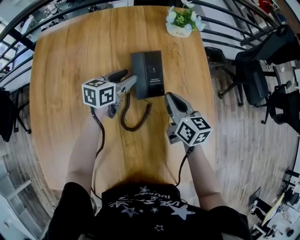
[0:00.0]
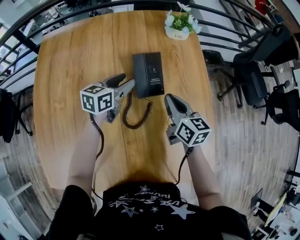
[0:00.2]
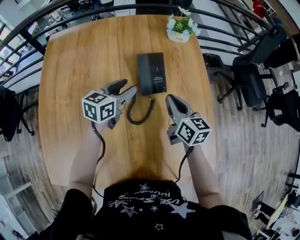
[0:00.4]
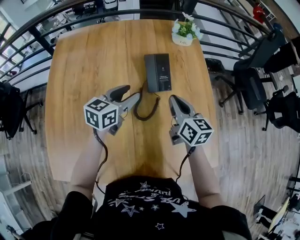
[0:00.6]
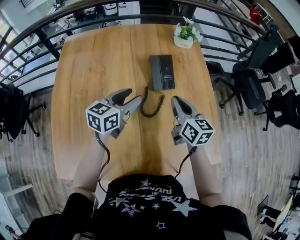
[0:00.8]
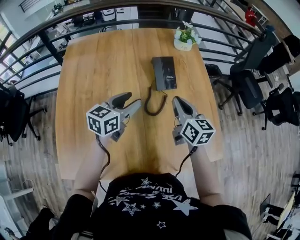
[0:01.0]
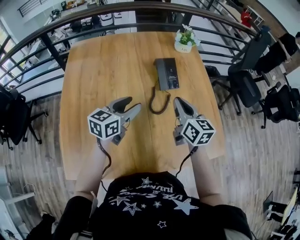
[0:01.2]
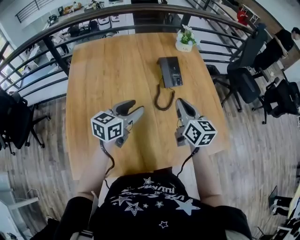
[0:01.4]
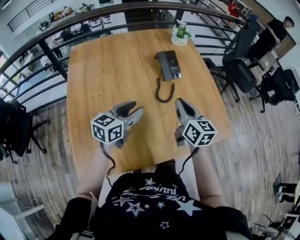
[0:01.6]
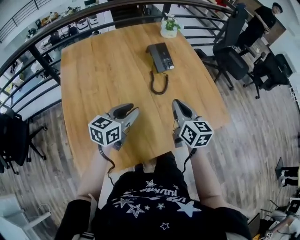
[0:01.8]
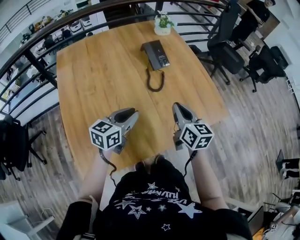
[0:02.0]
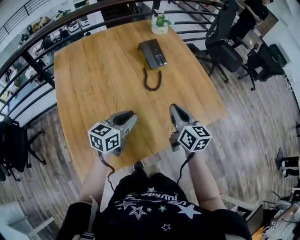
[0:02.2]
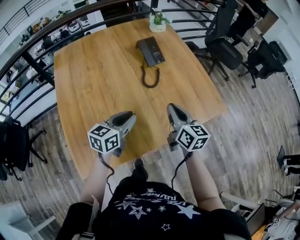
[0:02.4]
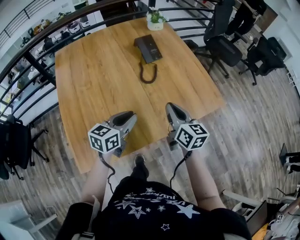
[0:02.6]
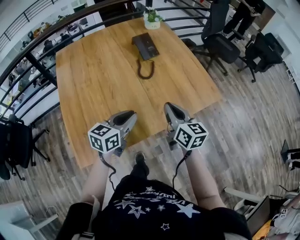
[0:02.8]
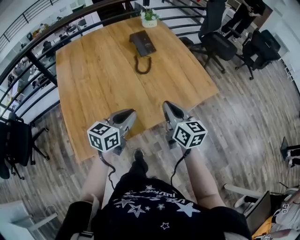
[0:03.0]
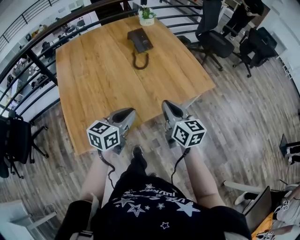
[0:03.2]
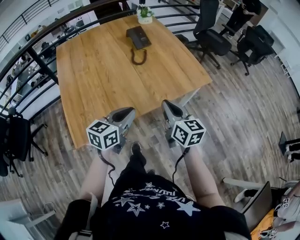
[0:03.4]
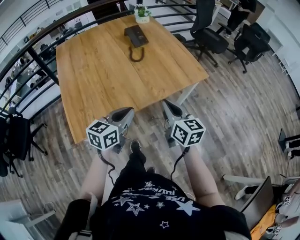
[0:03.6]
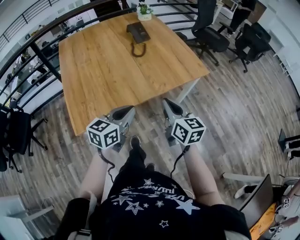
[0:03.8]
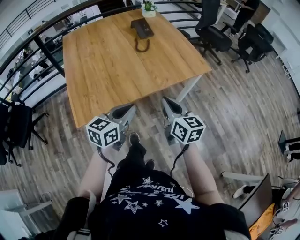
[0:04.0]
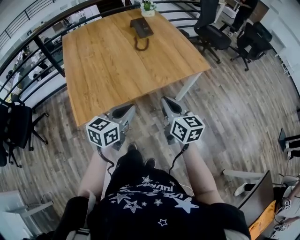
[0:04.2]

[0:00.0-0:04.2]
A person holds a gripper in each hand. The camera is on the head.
0:00.0 to 0:01.4: The right gripper is displaced backward, upward and to the left by about 20 cm; the left gripper is displaced backward and upward by approximately 30 cm.
0:01.4 to 0:02.8: The right gripper travels backward by some 20 cm. Meanwhile the left gripper moves backward and to the right, about 20 cm, and closes up.
0:02.8 to 0:04.2: Both grippers travel together backward, about 20 cm.

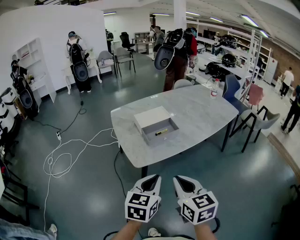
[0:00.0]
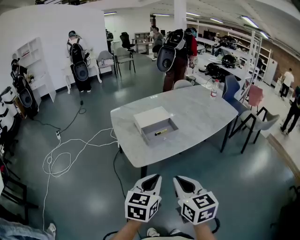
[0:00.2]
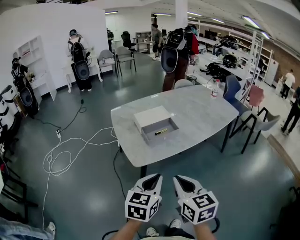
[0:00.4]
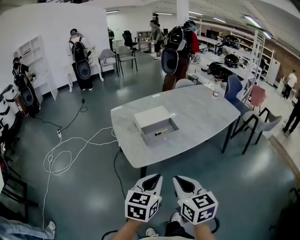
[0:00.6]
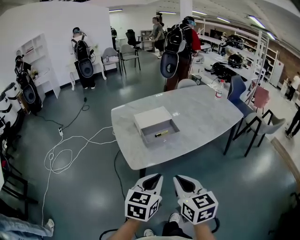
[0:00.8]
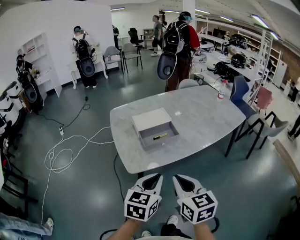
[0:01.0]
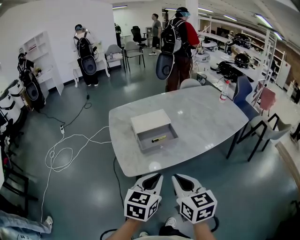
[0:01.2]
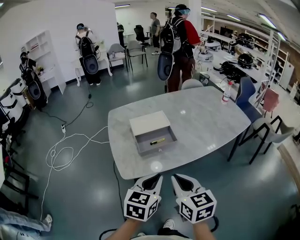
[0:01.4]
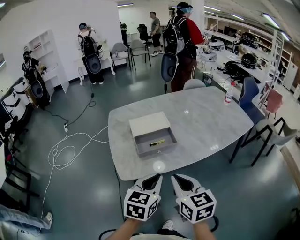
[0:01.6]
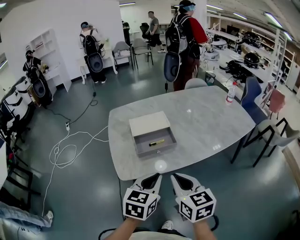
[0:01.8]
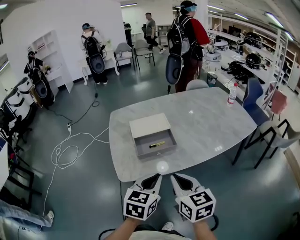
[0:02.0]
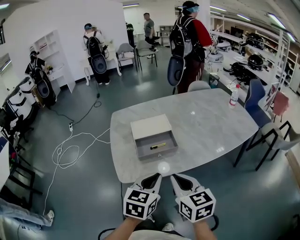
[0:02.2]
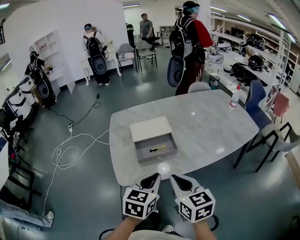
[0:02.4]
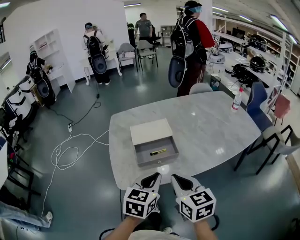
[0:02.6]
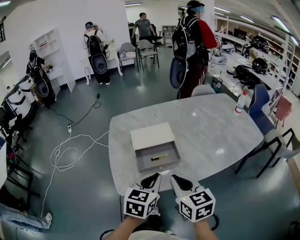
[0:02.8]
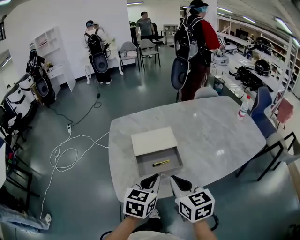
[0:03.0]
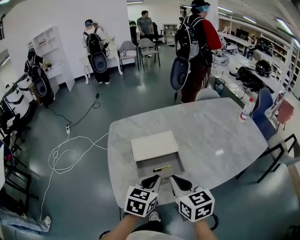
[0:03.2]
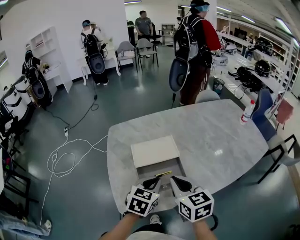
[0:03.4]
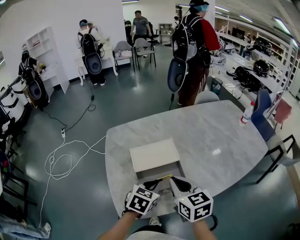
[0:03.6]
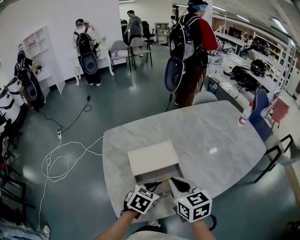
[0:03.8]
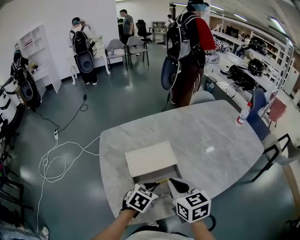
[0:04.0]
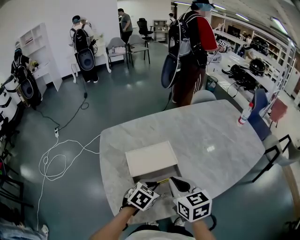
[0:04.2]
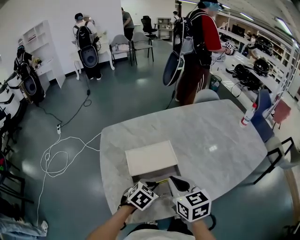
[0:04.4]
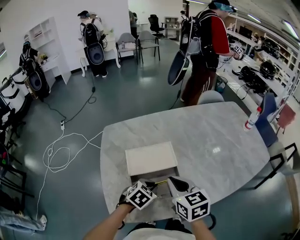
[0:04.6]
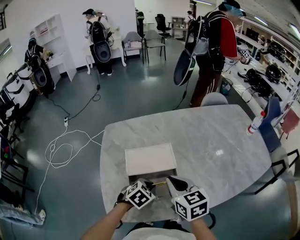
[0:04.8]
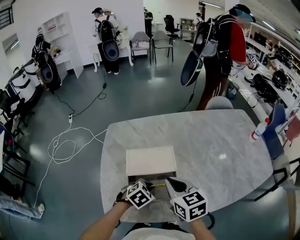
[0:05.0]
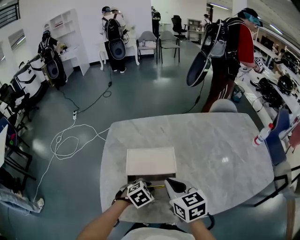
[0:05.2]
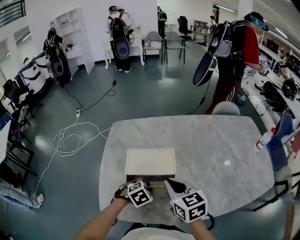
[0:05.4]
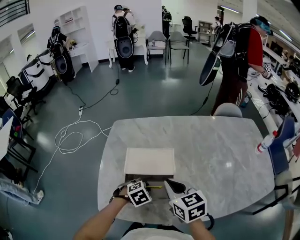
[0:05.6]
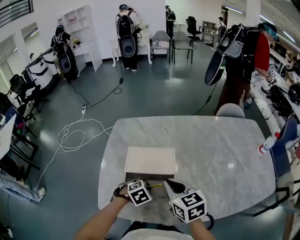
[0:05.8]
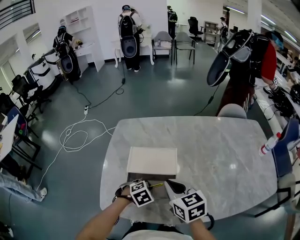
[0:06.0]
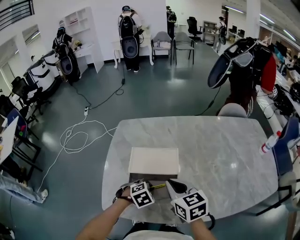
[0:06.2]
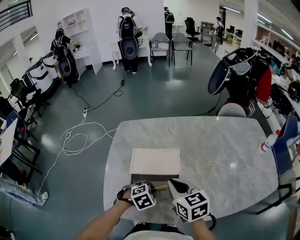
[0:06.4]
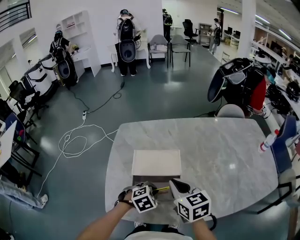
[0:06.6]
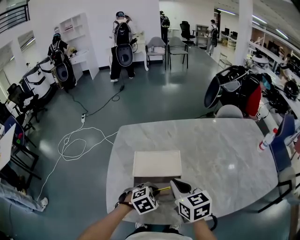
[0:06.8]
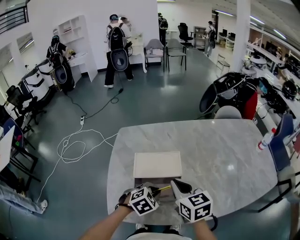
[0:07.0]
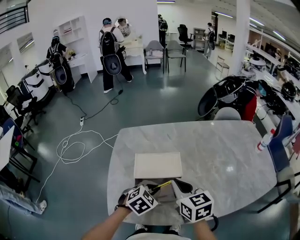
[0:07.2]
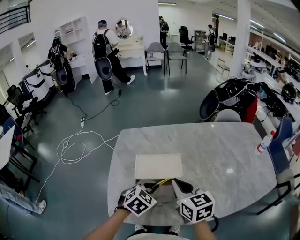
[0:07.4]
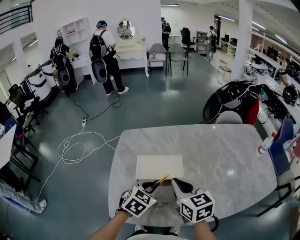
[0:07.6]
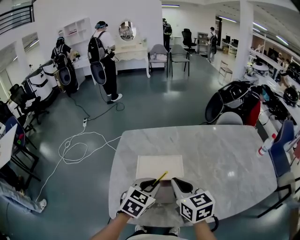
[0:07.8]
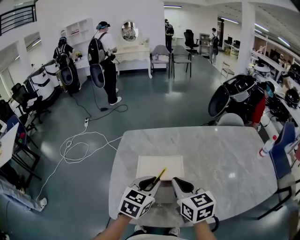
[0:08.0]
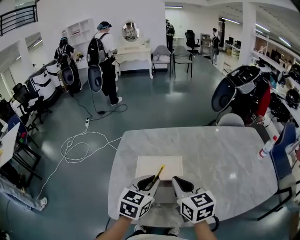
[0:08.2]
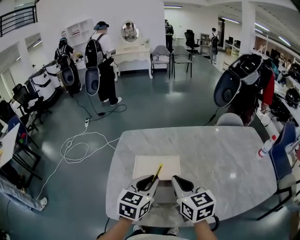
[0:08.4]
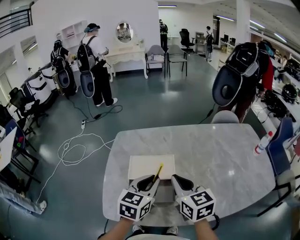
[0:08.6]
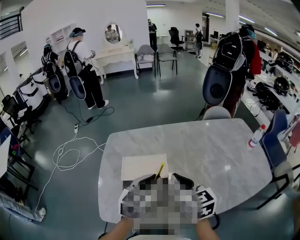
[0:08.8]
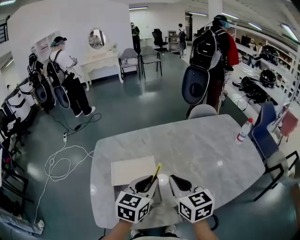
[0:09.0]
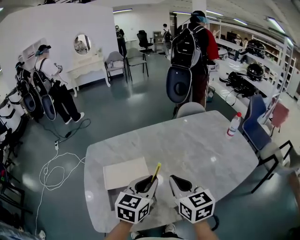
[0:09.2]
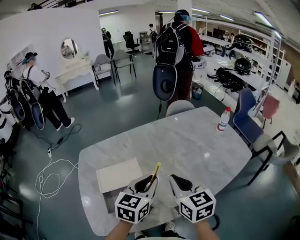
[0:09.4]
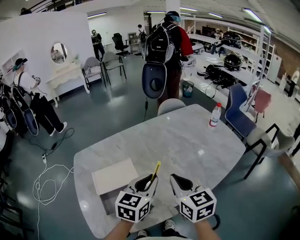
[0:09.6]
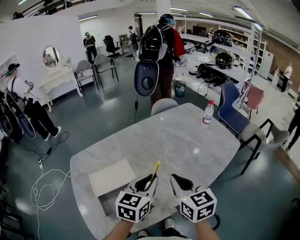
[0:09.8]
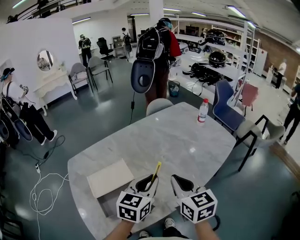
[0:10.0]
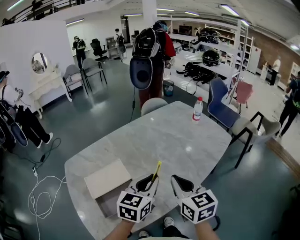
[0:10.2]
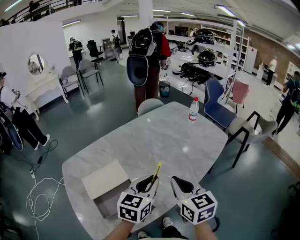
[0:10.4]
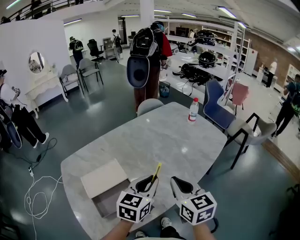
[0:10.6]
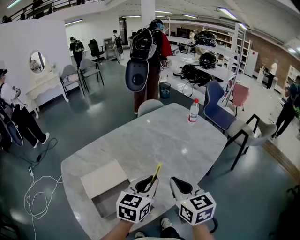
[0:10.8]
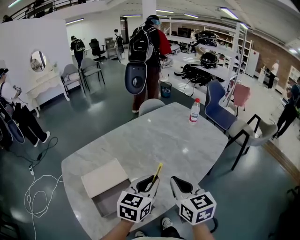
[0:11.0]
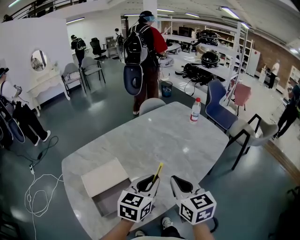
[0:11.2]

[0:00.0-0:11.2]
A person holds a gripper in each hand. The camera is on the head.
0:00.0 to 0:01.6: Both grippers travel together forward and to the right, some 15 cm.
0:01.6 to 0:03.2: Both grippers move forward, approximately 20 cm.
0:03.2 to 0:04.8: The left gripper heads downward and forward, covering roughly 15 cm, and turns by some 30 degrees; the right gripper is displaced forward by approximately 10 cm.
0:04.8 to 0:06.4: There are only small adjustments of the grippers.
0:06.4 to 0:08.0: The right gripper is displaced upward by approximately 5 cm. The left gripper shifts approximately 15 cm upward, and points its fingers roughly 40 degrees further upward.
0:08.0 to 0:09.6: The right gripper changes place by roughly 20 cm, and changes its angle by roughly 30 degrees. Meanwhile the left gripper changes place by approximately 20 cm, and turns by about 20 degrees.
0:09.6 to 0:11.2: The right gripper moves roughly 5 cm; the left gripper travels to the right by approximately 5 cm.

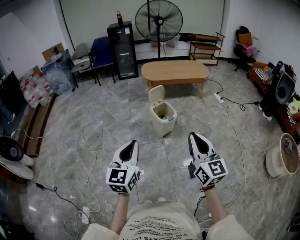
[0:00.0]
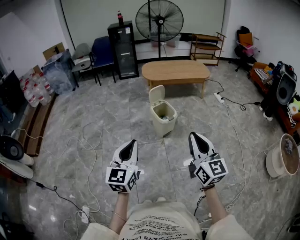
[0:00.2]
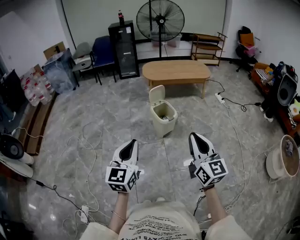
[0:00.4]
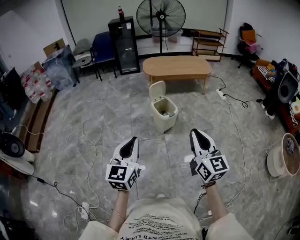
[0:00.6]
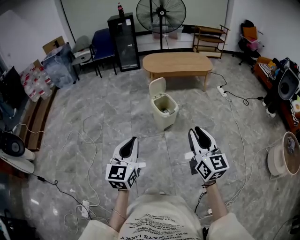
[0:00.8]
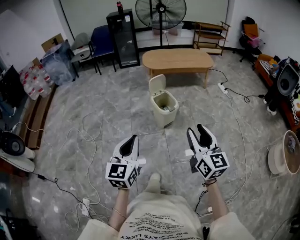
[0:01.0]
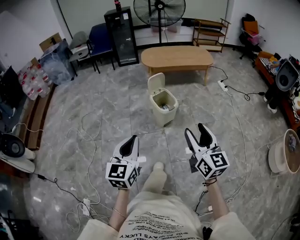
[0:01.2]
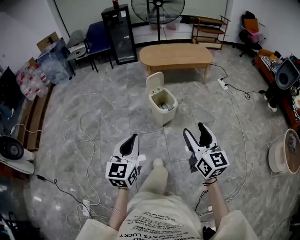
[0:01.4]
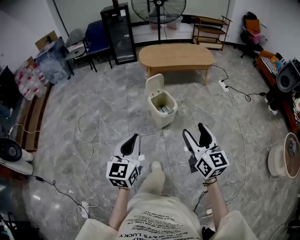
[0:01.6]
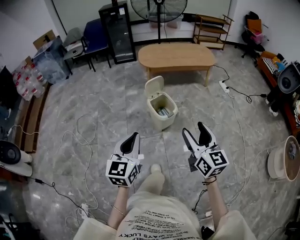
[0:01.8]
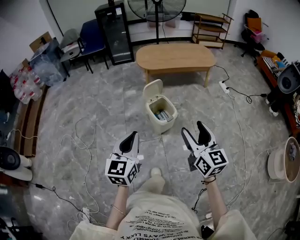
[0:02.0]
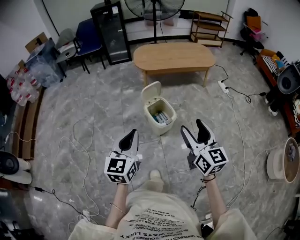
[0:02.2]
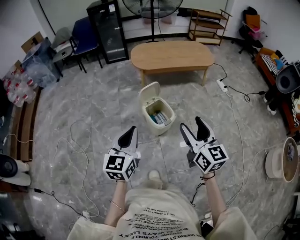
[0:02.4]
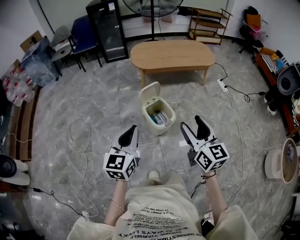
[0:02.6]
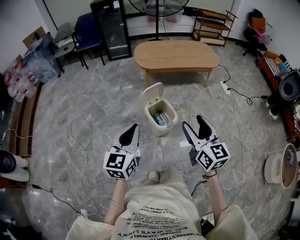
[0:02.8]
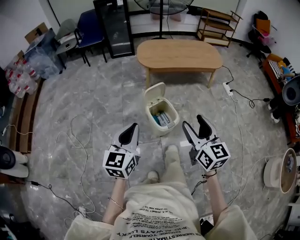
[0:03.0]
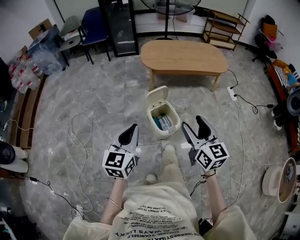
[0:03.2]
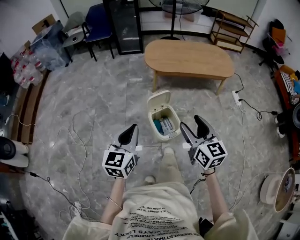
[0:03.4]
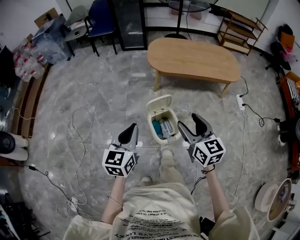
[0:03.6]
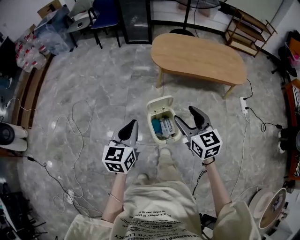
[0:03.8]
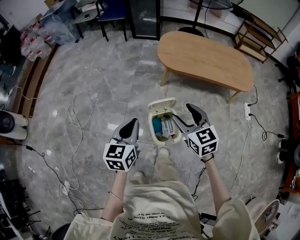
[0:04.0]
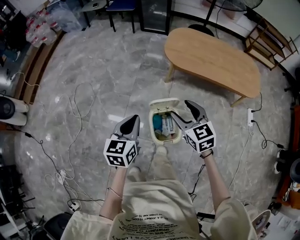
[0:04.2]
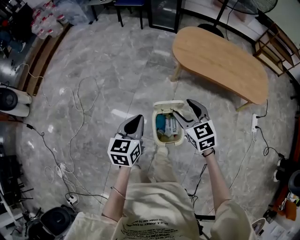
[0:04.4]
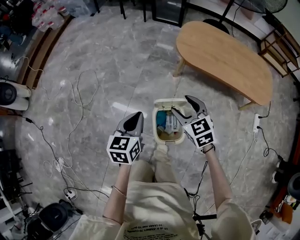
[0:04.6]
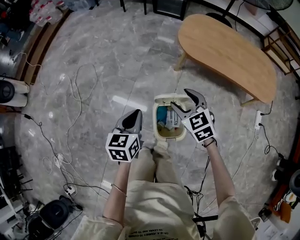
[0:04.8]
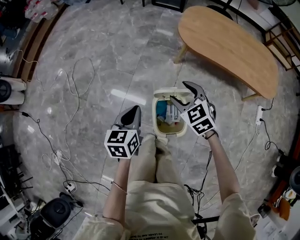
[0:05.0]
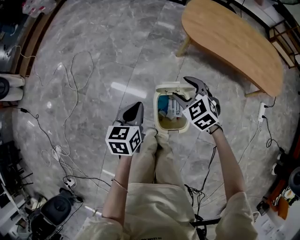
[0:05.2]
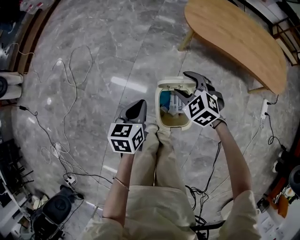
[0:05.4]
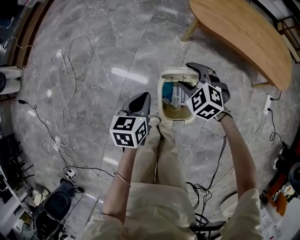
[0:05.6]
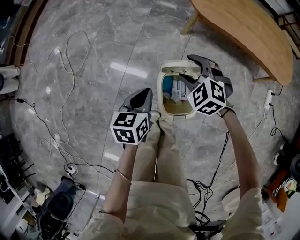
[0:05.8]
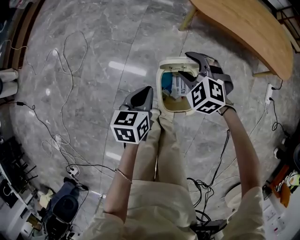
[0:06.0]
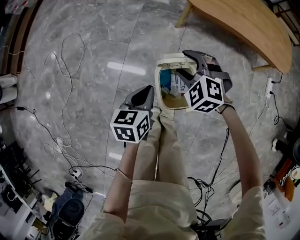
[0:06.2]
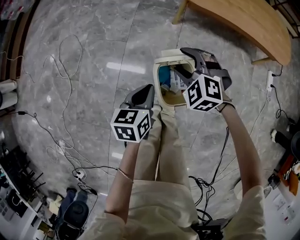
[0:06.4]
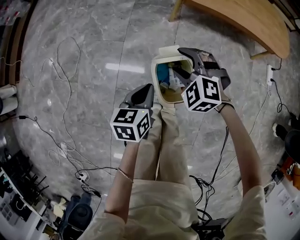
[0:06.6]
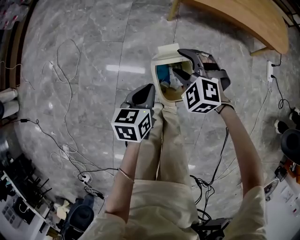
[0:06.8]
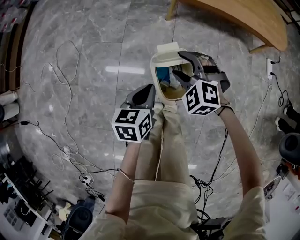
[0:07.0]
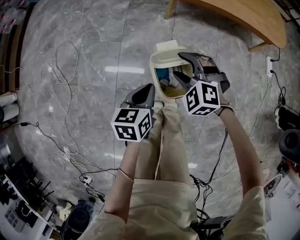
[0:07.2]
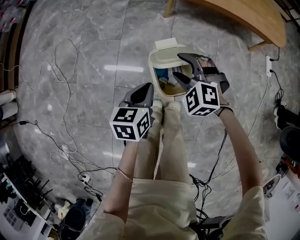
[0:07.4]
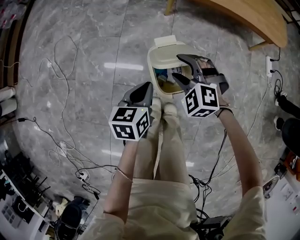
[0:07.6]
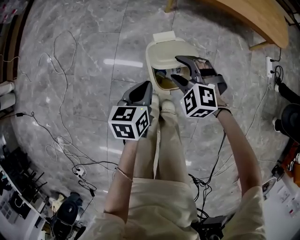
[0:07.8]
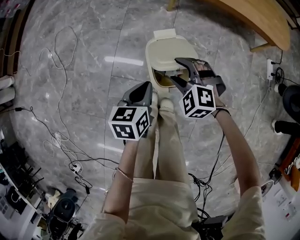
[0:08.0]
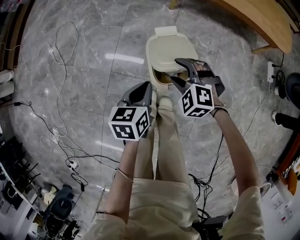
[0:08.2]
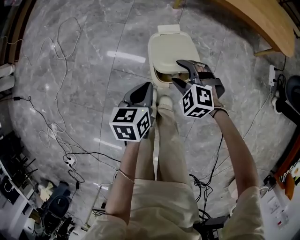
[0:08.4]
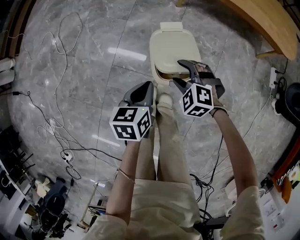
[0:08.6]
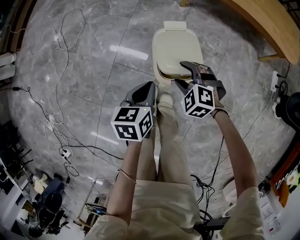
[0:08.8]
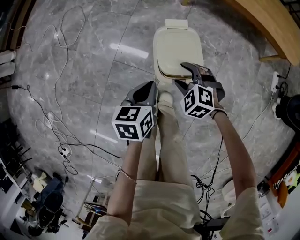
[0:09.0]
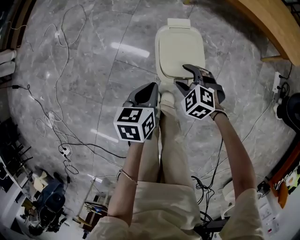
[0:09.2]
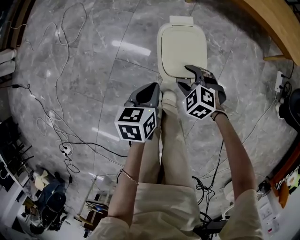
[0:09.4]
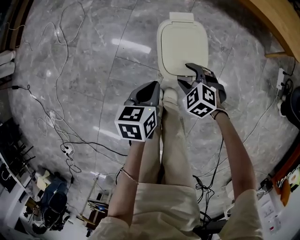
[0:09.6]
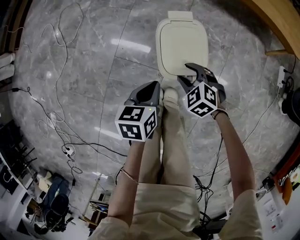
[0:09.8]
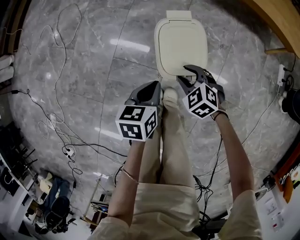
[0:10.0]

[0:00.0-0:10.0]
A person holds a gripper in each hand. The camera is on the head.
0:00.0 to 0:01.4: The right gripper moves forward and downward, about 10 cm, and opens up. The left gripper goes some 5 cm forward.
0:01.4 to 0:02.8: The two grippers go roughly 25 cm forward.
0:02.8 to 0:04.2: The right gripper changes place by about 35 cm, and swivels roughly 40 degrees; the left gripper moves approximately 25 cm, and changes its angle by some 30 degrees.
0:04.2 to 0:05.8: Both grippers move downward, approximately 20 cm. The right gripper rolls counterclockwise, seen from behind, by about 40 degrees.
0:05.8 to 0:07.2: The right gripper is displaced backward by approximately 10 cm. Meanwhile the left gripper moves some 5 cm.
0:07.2 to 0:08.6: The left gripper travels backward by some 10 cm; the right gripper heads backward and downward, covering approximately 15 cm.
0:08.6 to 0:10.0: The two grippers go about 5 cm downward. The right gripper closes up.
